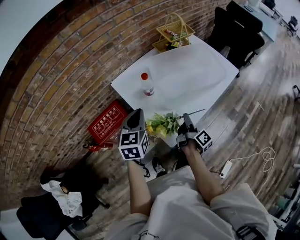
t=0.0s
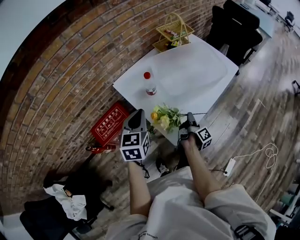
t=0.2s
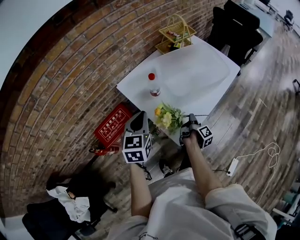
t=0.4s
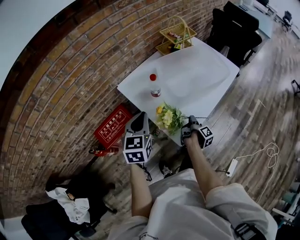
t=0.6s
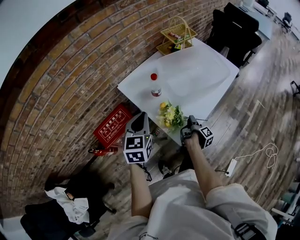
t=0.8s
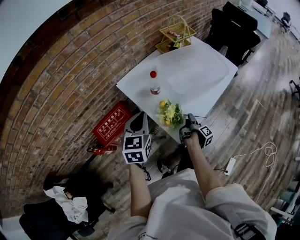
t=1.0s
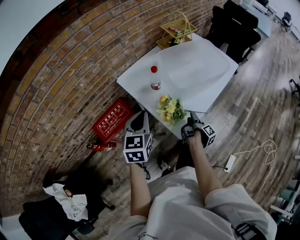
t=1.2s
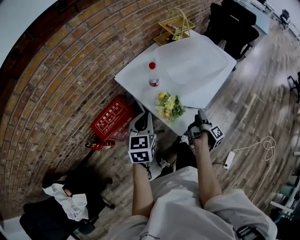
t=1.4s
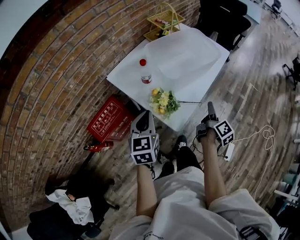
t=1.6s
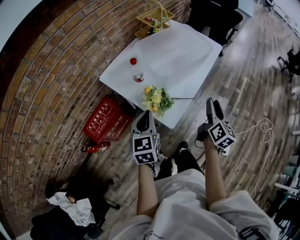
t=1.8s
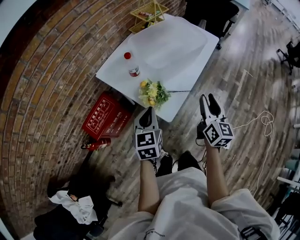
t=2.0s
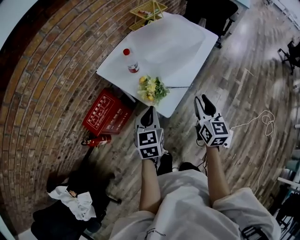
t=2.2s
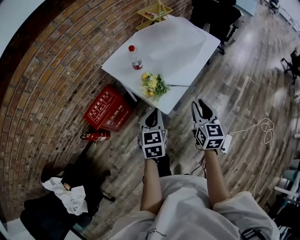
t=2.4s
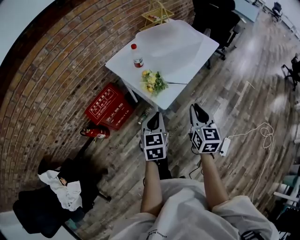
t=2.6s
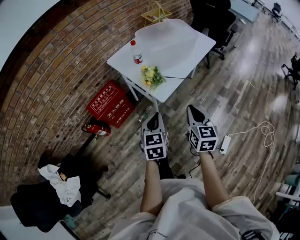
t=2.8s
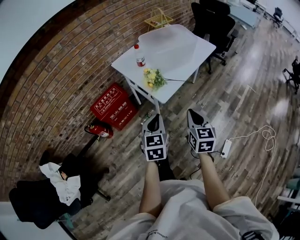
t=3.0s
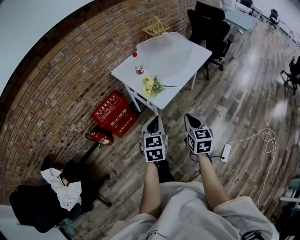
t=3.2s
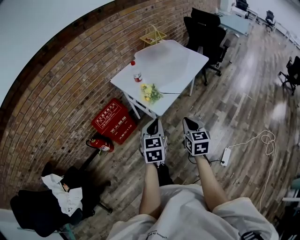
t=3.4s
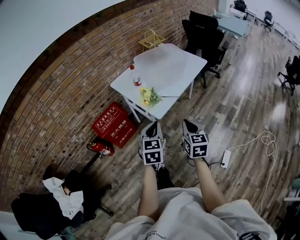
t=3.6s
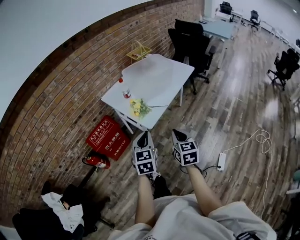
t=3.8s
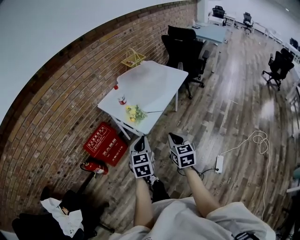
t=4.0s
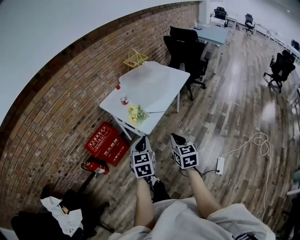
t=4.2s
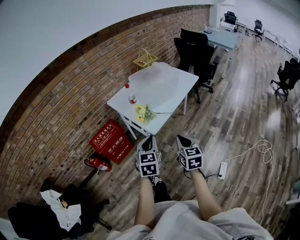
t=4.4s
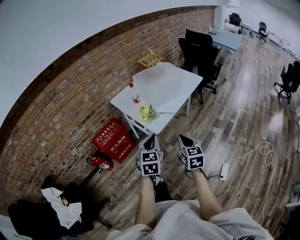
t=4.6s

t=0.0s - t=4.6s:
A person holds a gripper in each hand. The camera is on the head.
t=0.0s - t=1.6s: The right gripper travels to the right and backward by approximately 10 cm, goes downward and returns, some 10 cm each way, swivels about 30 degrees, and opens. Meanwhile the left gripper heads backward, covering approximately 5 cm.
t=1.6s - t=3.0s: The left gripper travels backward and to the right by roughly 25 cm; the right gripper moves backward, approximately 25 cm, rolls counterclockwise, seen from behind, by about 70 degrees, and closes up.
t=3.0s - t=4.6s: The left gripper goes some 5 cm upward.

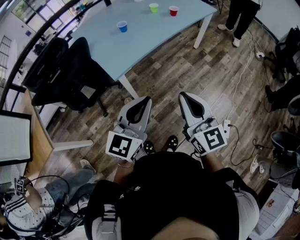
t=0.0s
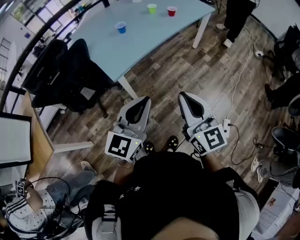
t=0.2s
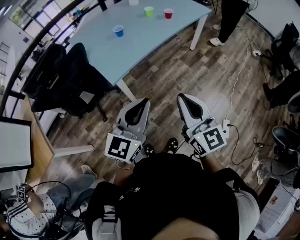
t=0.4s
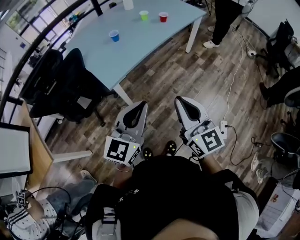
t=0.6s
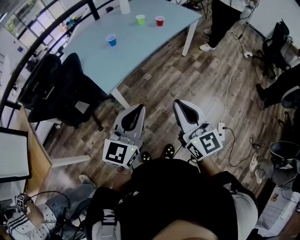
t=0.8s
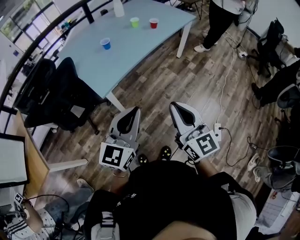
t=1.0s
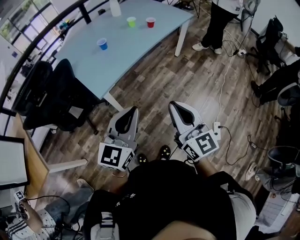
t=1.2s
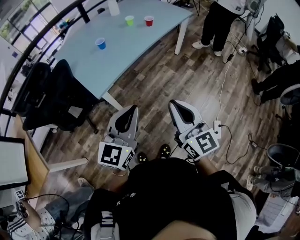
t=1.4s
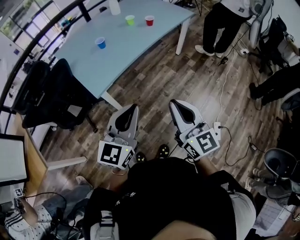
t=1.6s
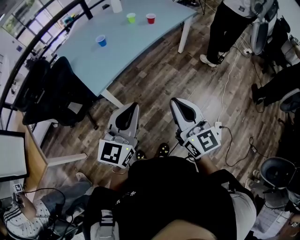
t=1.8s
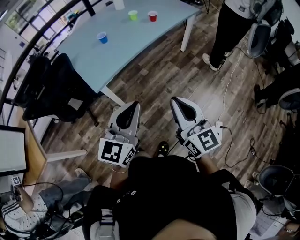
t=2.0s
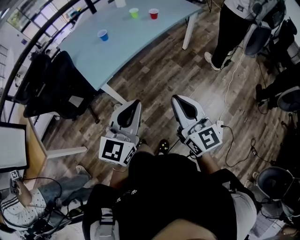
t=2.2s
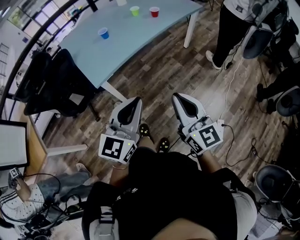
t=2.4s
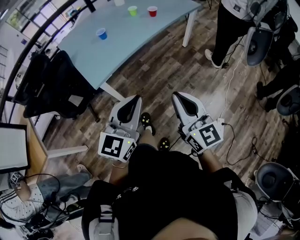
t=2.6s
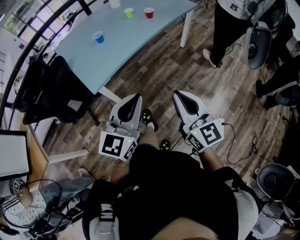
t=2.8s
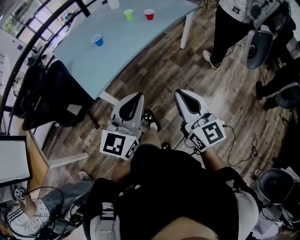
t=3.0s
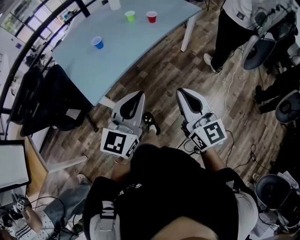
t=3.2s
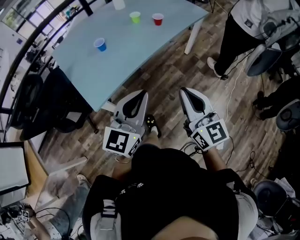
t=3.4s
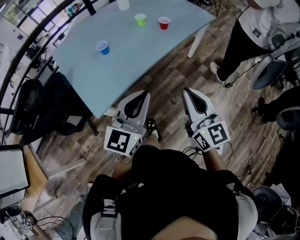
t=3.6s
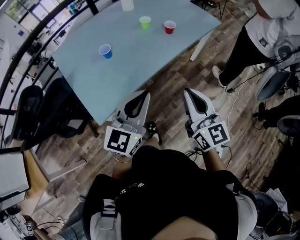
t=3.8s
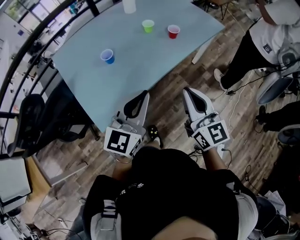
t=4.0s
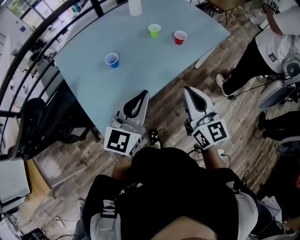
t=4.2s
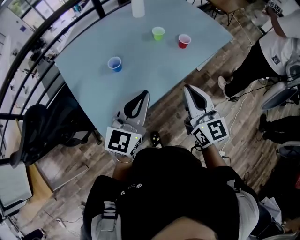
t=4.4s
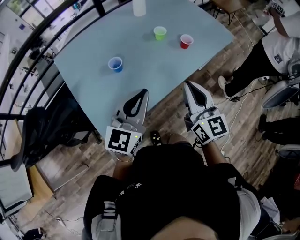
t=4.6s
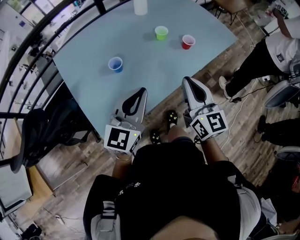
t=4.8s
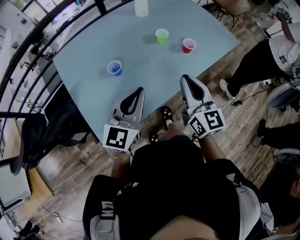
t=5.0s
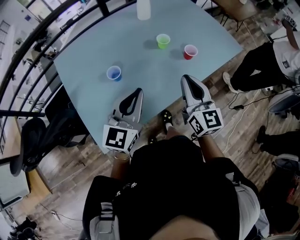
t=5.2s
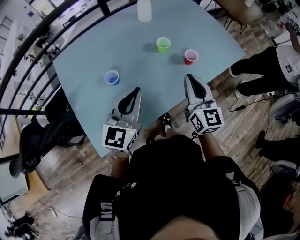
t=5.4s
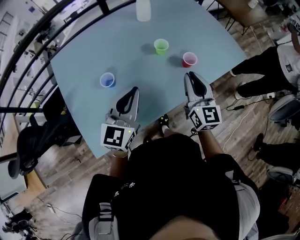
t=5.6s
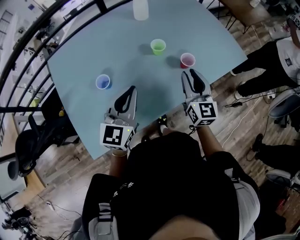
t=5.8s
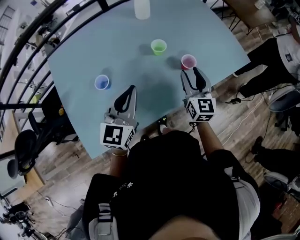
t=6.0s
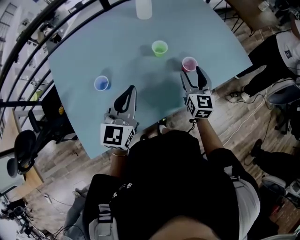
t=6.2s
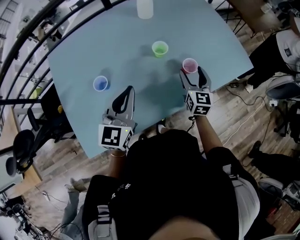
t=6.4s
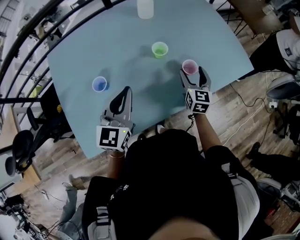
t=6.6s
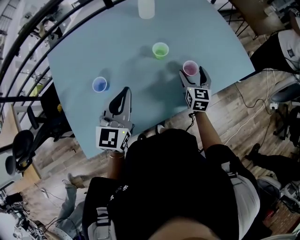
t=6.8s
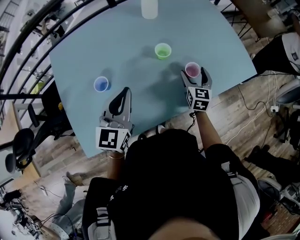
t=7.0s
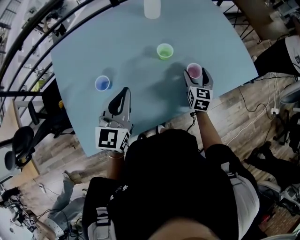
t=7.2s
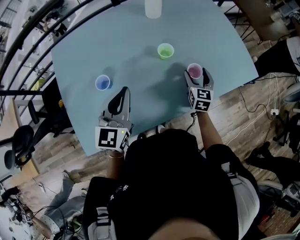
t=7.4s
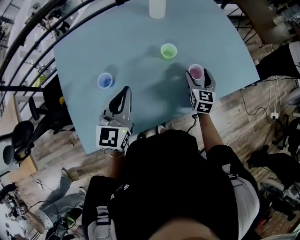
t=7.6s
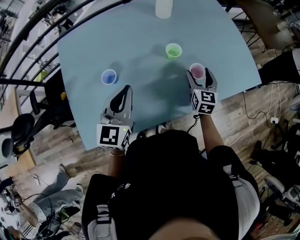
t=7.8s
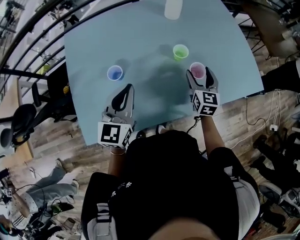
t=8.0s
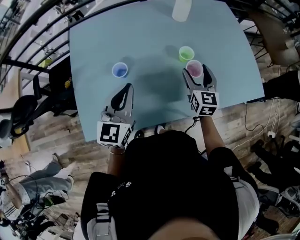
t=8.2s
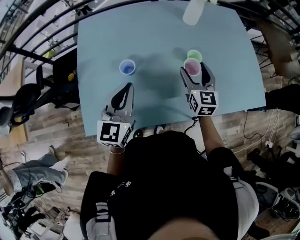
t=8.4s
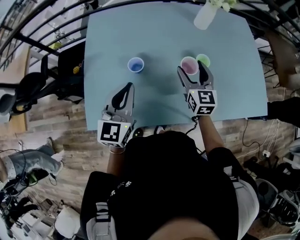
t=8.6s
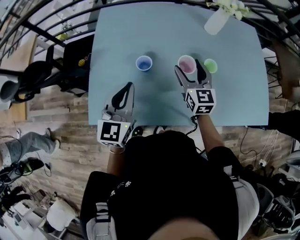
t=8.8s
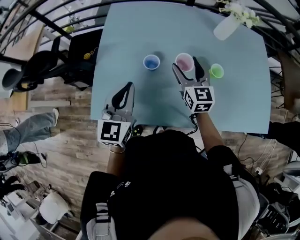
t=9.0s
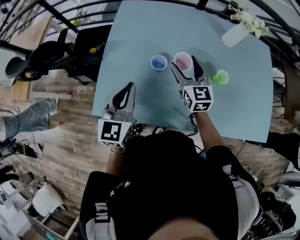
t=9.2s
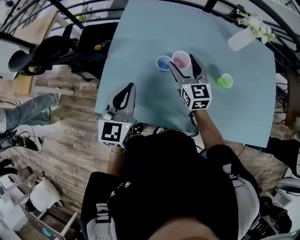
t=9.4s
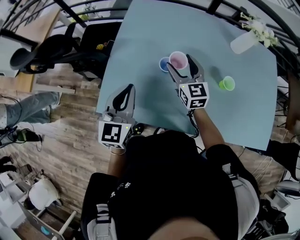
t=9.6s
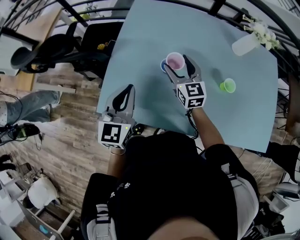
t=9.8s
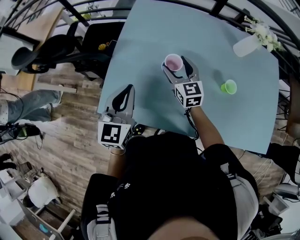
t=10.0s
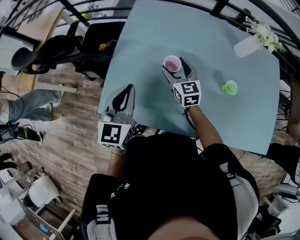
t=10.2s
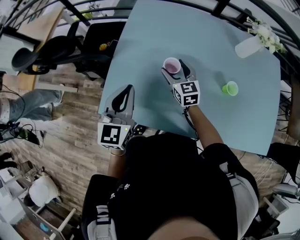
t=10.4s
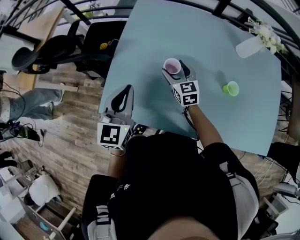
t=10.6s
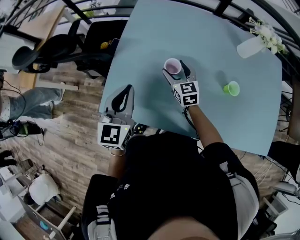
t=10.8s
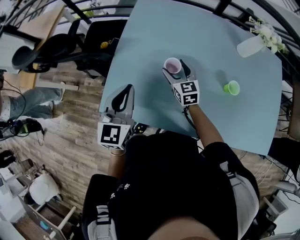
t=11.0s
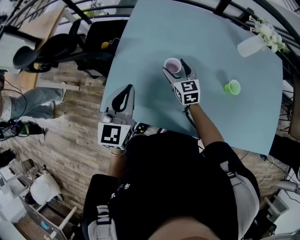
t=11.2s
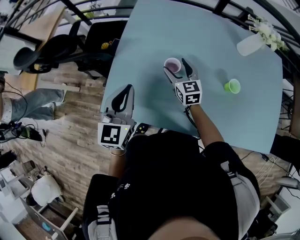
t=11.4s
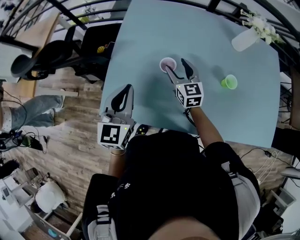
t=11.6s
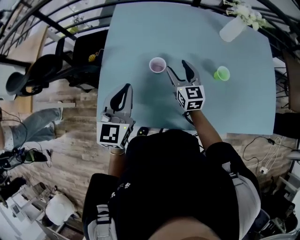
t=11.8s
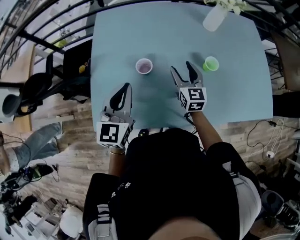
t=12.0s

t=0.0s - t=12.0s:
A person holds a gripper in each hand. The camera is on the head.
t=0.0s - t=1.6s: The grippers both shift to the right by some 5 cm.
t=1.6s - t=3.0s: The grippers both shift forward and to the right by approximately 10 cm.
t=3.0s - t=4.4s: The left gripper moves forward and to the left, roughly 40 cm. The right gripper shifts some 35 cm forward.
t=4.4s - t=6.0s: Both grippers travel together forward, roughly 25 cm. The right gripper opens.
t=6.0s - t=7.6s: The right gripper moves downward and forward, some 15 cm, and opens its fingers.
t=7.6s - t=9.0s: The left gripper moves some 15 cm, and changes its angle by some 30 degrees; the right gripper ends up approximately 30 cm from where it was, and swivels roughly 40 degrees.
t=9.0s - t=10.4s: The left gripper goes roughly 5 cm to the left, while the right gripper is displaced to the left, downward and forward by approximately 15 cm.
t=10.4s - t=12.0s: The left gripper travels to the right by some 10 cm. The right gripper heads to the right and backward, covering about 15 cm, and swivels about 30 degrees.

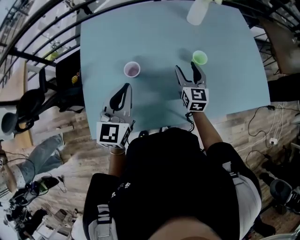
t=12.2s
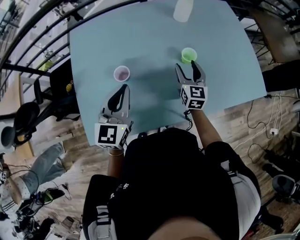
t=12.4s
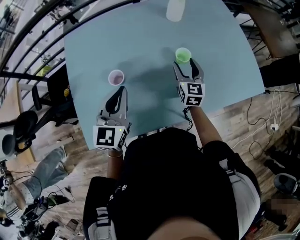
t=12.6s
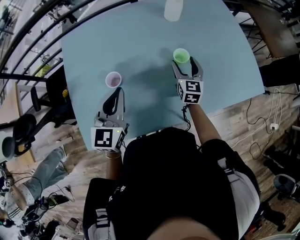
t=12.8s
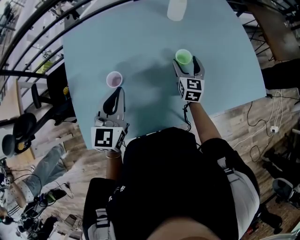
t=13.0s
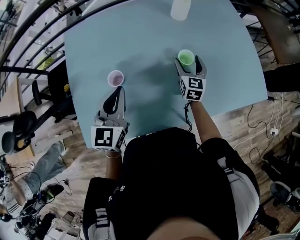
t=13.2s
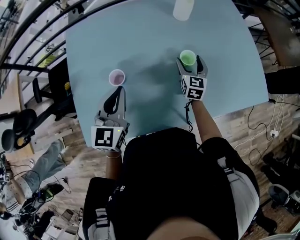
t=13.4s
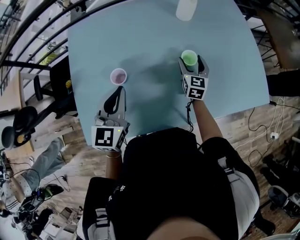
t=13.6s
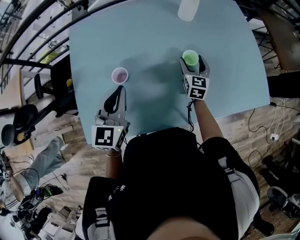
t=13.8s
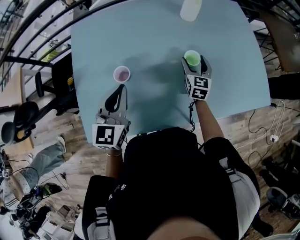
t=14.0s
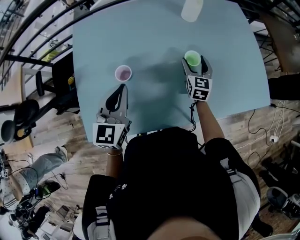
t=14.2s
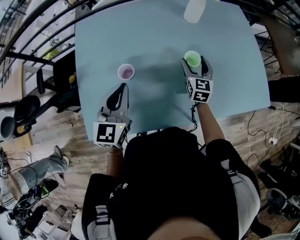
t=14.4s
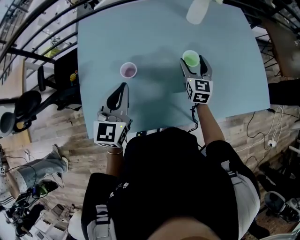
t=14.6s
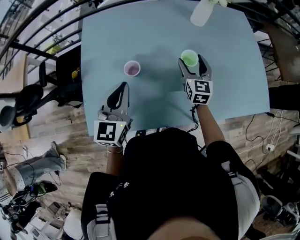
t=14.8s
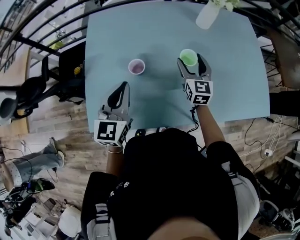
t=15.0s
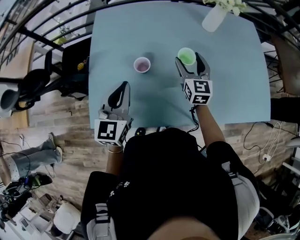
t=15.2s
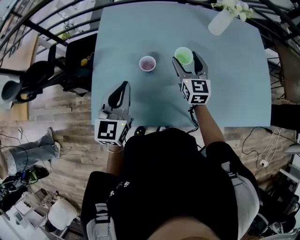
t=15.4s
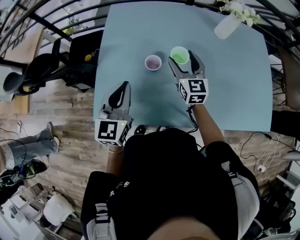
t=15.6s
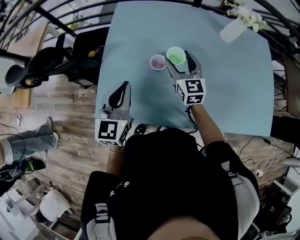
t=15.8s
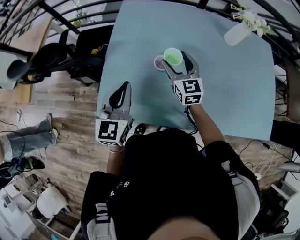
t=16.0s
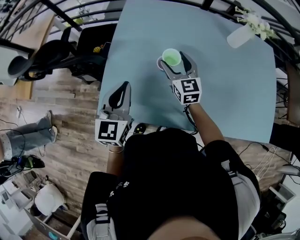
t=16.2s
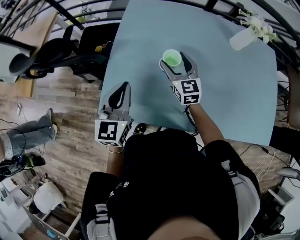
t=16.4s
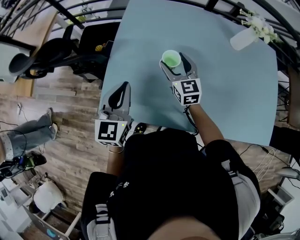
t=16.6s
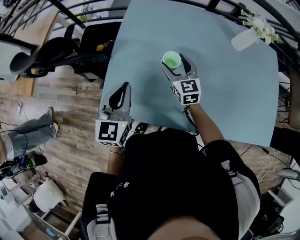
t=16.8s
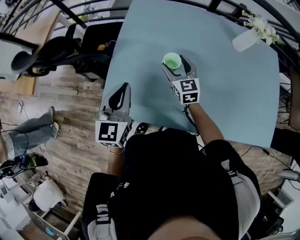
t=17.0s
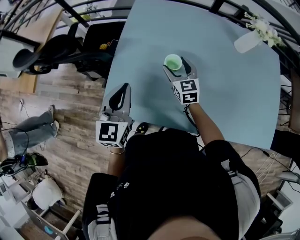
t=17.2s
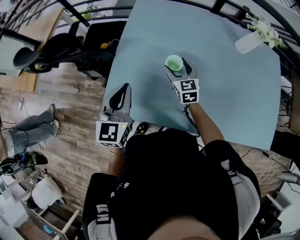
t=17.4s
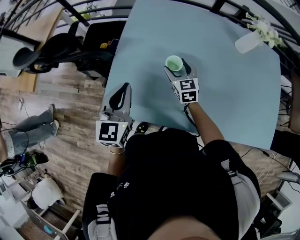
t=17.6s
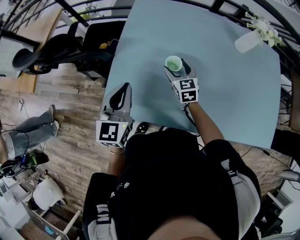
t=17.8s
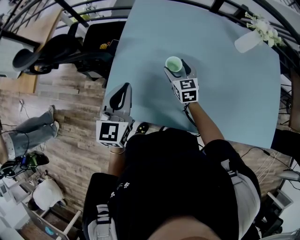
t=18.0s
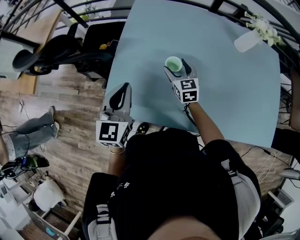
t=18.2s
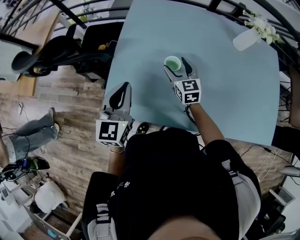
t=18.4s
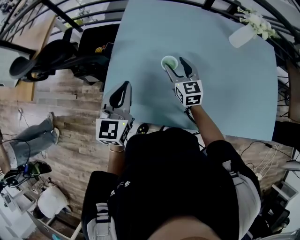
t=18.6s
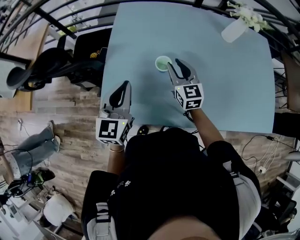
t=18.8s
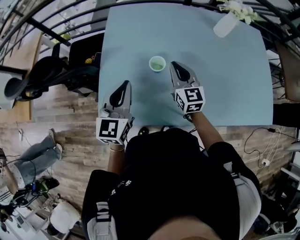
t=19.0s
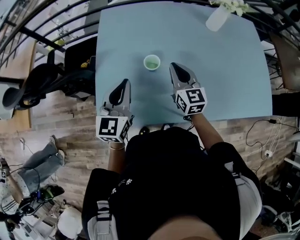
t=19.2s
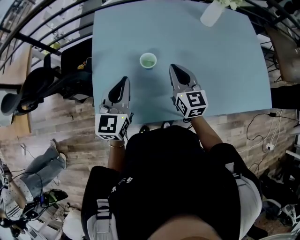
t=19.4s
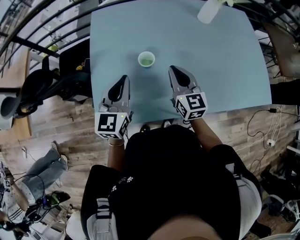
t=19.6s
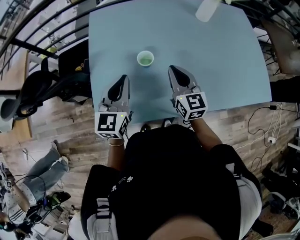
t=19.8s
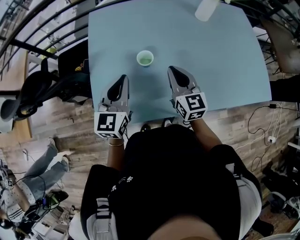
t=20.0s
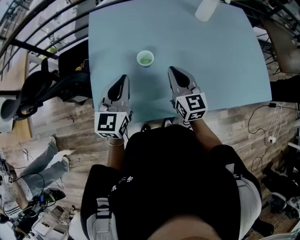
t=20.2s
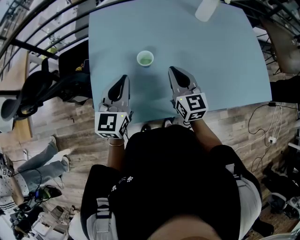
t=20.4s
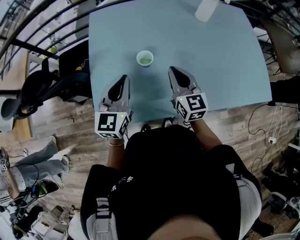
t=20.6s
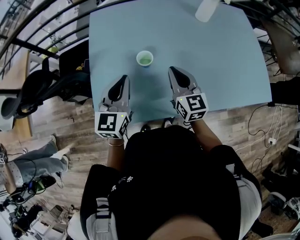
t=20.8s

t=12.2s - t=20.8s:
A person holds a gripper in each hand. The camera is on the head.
t=12.2s - t=13.6s: The right gripper is displaced to the right, forward and downward by approximately 15 cm, while the left gripper ends up about 5 cm from where it was.
t=13.6s - t=15.0s: The left gripper goes some 5 cm to the left; the right gripper moves to the left and upward, some 15 cm.
t=15.0s - t=16.6s: The right gripper moves to the left, some 25 cm, and rotates some 30 degrees. Meanwhile the left gripper goes approximately 10 cm to the left.
t=16.6s - t=18.0s: The right gripper goes roughly 5 cm downward.
t=18.0s - t=19.4s: The left gripper moves to the right, about 5 cm. Meanwhile the right gripper is displaced upward, backward and to the right by some 15 cm, changes its angle by some 20 degrees, and closes.
t=19.4s - t=20.8s: The grippers move only a little.
